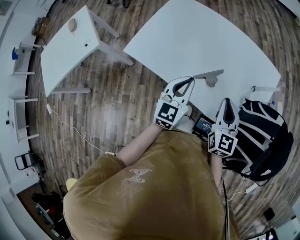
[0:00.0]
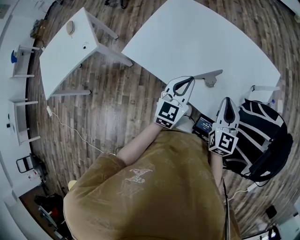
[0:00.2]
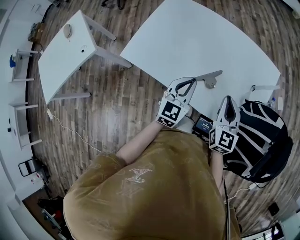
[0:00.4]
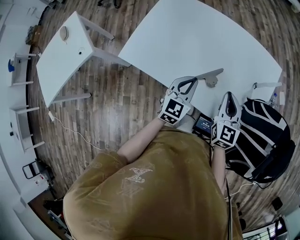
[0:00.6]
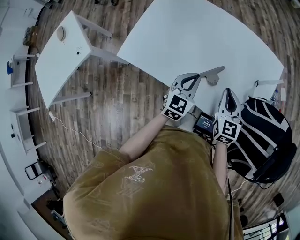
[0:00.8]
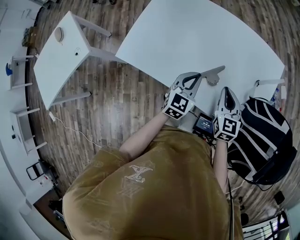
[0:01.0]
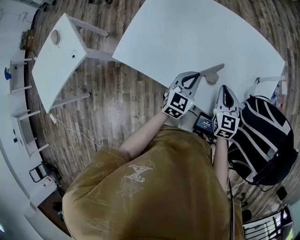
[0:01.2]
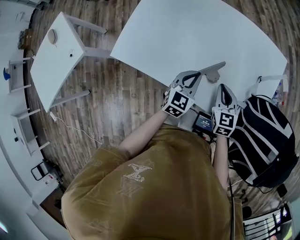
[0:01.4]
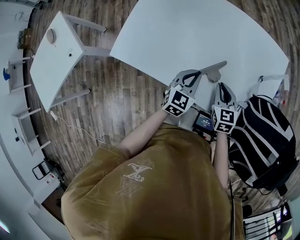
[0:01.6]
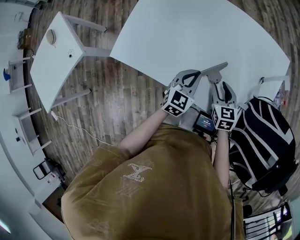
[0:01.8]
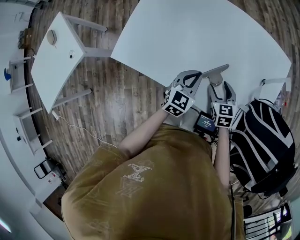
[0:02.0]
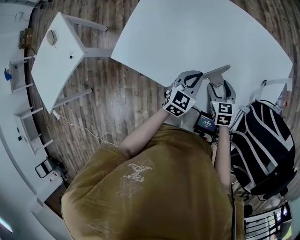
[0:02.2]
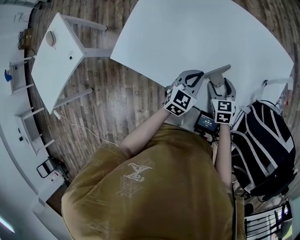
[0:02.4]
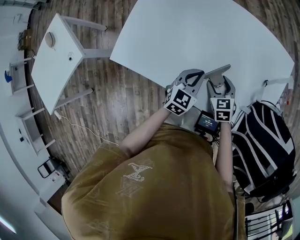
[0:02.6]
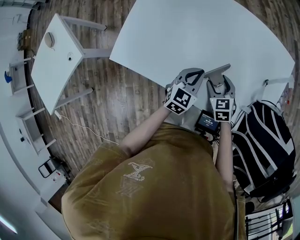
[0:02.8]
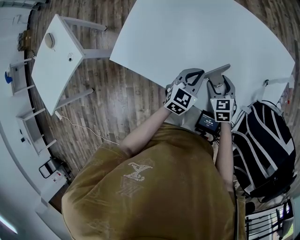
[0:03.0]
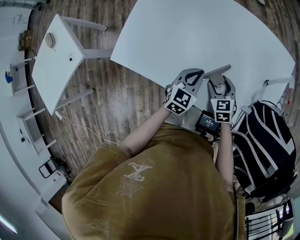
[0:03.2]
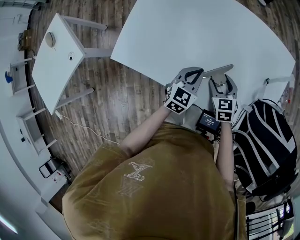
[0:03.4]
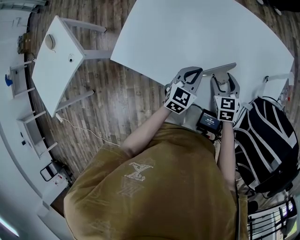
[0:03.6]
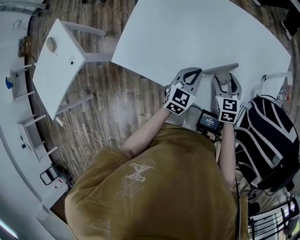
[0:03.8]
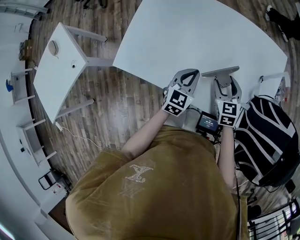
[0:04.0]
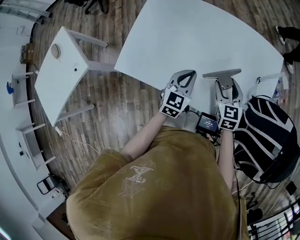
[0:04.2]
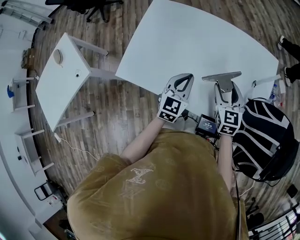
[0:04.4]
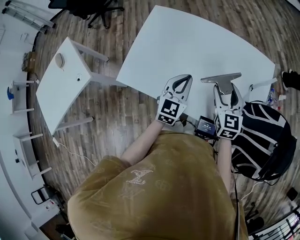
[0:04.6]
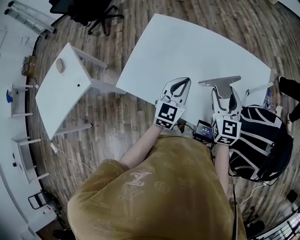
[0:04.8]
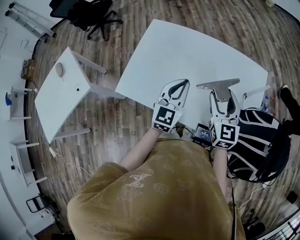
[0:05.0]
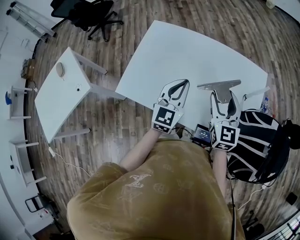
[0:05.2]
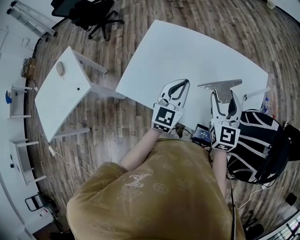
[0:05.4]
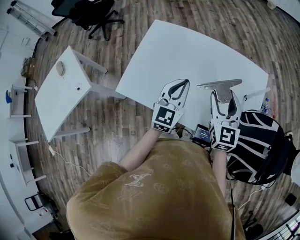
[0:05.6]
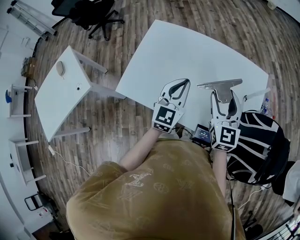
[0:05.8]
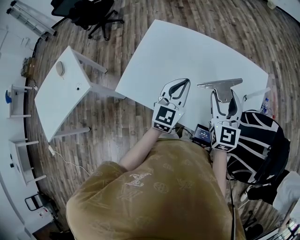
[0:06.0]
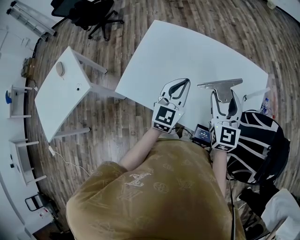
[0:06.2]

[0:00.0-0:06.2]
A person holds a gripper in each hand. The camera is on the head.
0:00.0 to 0:01.6: The right gripper goes about 15 cm downward, and turns by approximately 20 degrees; the left gripper shifts roughly 15 cm downward and forward.
0:01.6 to 0:03.2: The right gripper is displaced downward by approximately 5 cm, and opens up.
0:03.2 to 0:04.6: The right gripper travels upward by roughly 20 cm, and swivels roughly 30 degrees; the left gripper moves upward, approximately 15 cm.
0:04.6 to 0:06.2: The two grippers go about 5 cm upward.

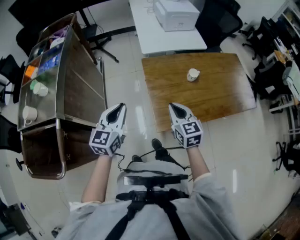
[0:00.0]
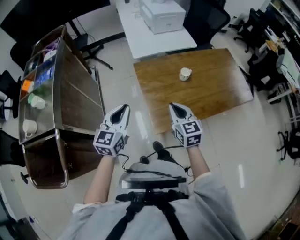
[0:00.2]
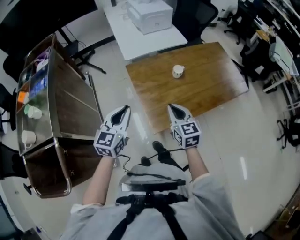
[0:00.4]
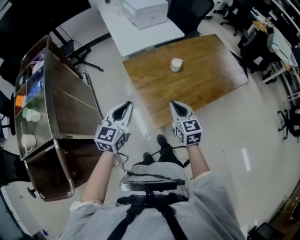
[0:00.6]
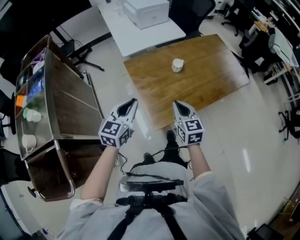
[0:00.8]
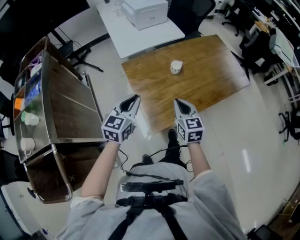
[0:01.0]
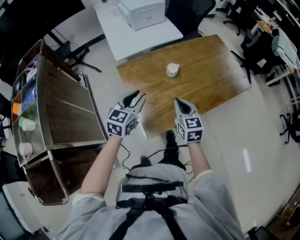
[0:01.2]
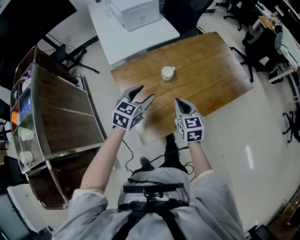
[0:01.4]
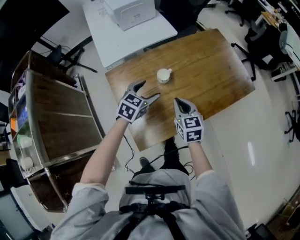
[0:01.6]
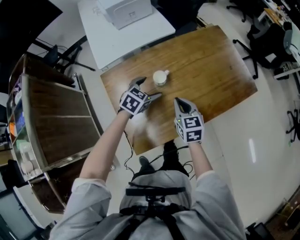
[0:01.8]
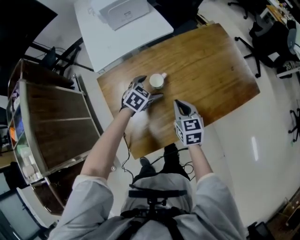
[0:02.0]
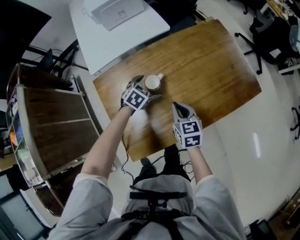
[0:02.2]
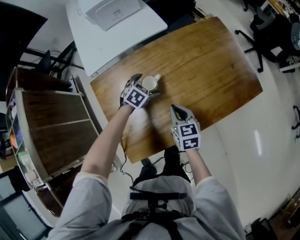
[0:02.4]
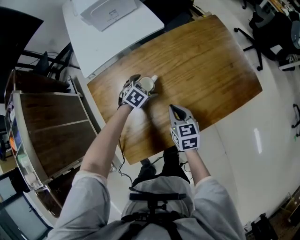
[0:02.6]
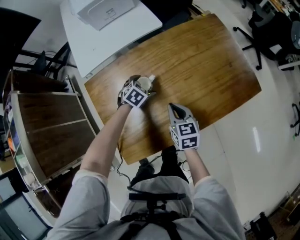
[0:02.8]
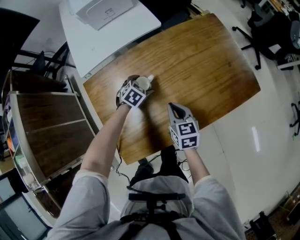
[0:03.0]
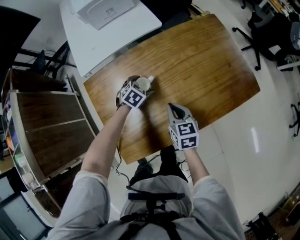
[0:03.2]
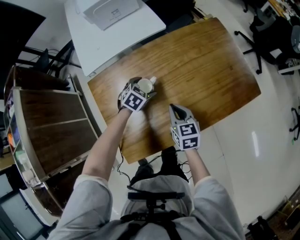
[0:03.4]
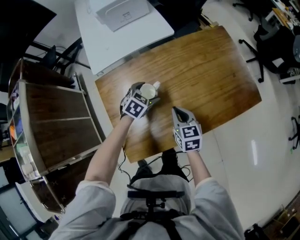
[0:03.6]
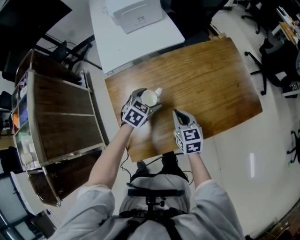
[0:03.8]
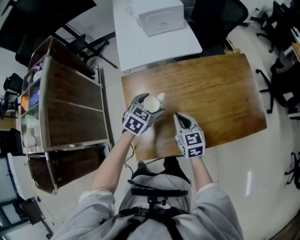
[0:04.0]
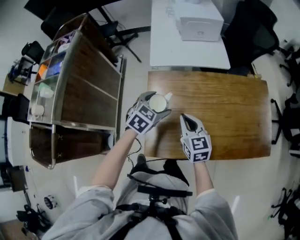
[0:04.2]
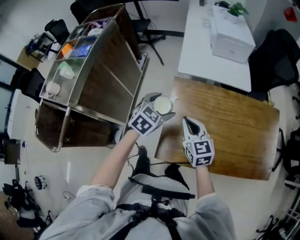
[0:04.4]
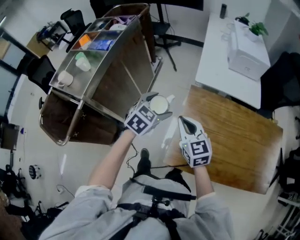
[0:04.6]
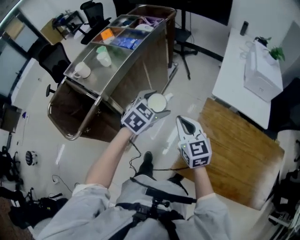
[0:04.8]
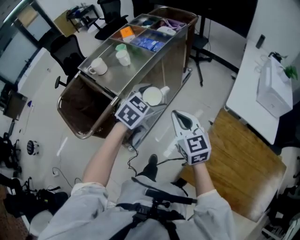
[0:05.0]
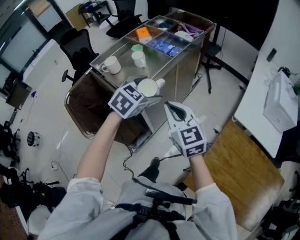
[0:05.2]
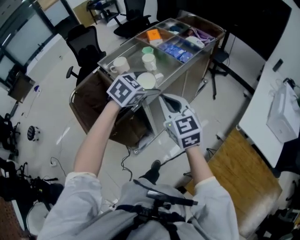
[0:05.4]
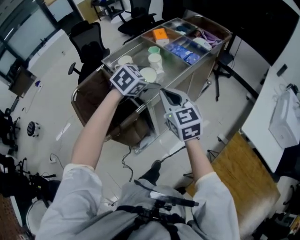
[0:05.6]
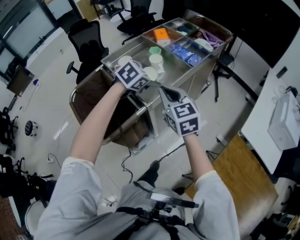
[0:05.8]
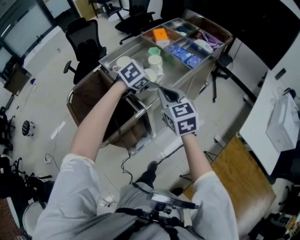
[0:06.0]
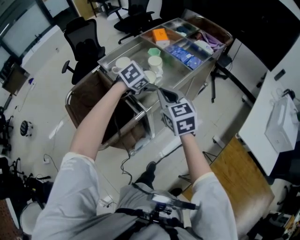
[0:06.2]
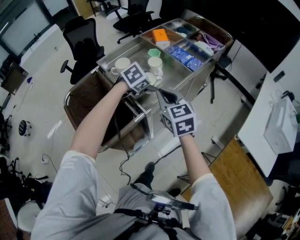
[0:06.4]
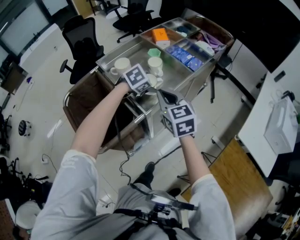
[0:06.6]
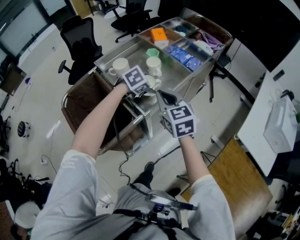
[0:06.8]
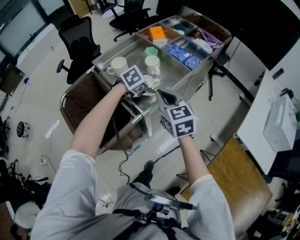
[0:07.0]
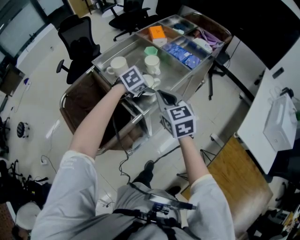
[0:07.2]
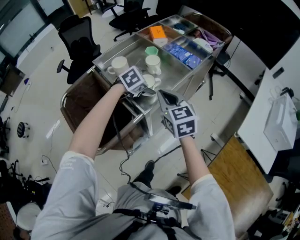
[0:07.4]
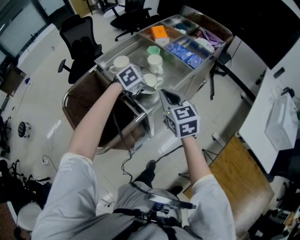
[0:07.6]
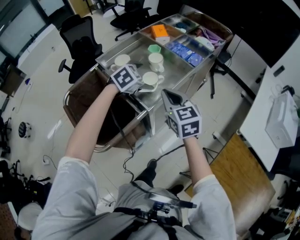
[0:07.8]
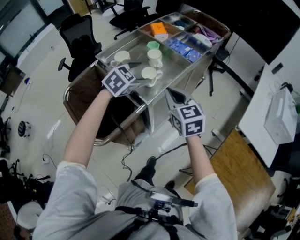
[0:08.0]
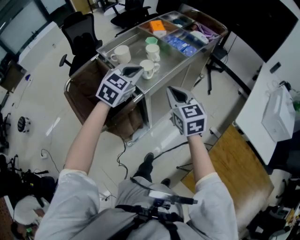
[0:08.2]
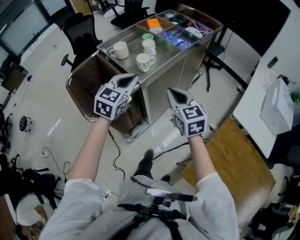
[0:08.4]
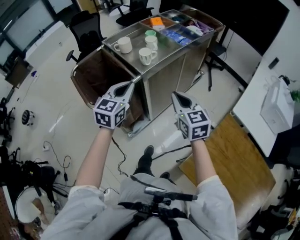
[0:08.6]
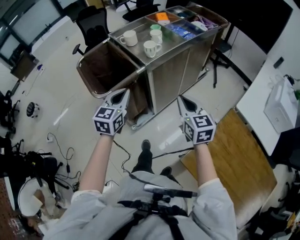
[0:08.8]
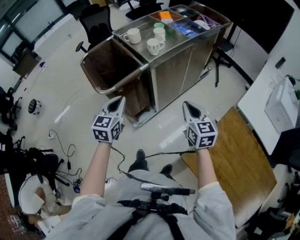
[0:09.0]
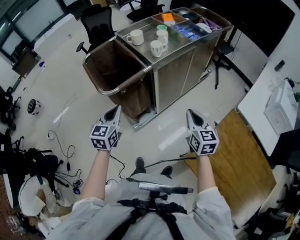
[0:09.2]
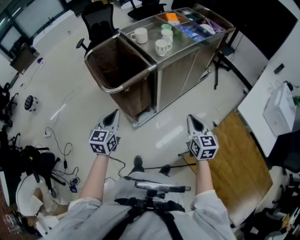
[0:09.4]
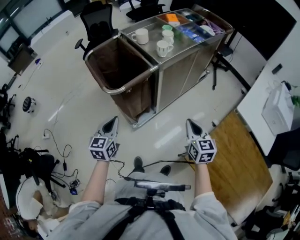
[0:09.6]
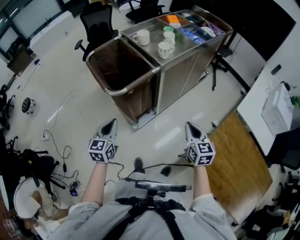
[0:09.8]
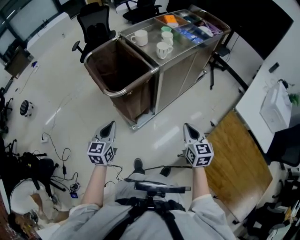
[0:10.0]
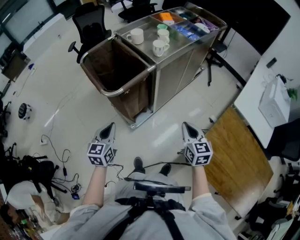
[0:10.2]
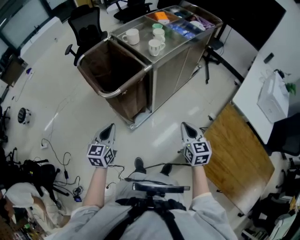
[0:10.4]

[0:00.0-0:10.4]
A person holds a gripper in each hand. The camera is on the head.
0:00.0 to 0:01.4: The left gripper is displaced to the right, forward and downward by about 30 cm, changes its angle by approximately 30 degrees, and opens its fingers; the right gripper travels to the right and forward by approximately 20 cm.
0:01.4 to 0:03.0: The right gripper travels forward, downward and to the right by roughly 20 cm; the left gripper is displaced downward and forward by about 35 cm, and angles its fingers downward, by approximately 30 degrees.
0:03.0 to 0:04.4: The right gripper ends up approximately 30 cm from where it was, and turns by about 40 degrees; the left gripper shifts by about 40 cm, and changes its angle by some 40 degrees.
0:04.4 to 0:06.0: The pair of grippers is taken some 60 cm. The left gripper swivels roughly 30 degrees. The right gripper changes its angle by approximately 40 degrees.
0:06.0 to 0:07.4: The left gripper travels downward by some 5 cm.
0:07.4 to 0:09.0: The right gripper goes approximately 30 cm backward and to the right. Meanwhile the left gripper heads backward, covering approximately 40 cm, tips its fingers upward by roughly 30 degrees, and closes its fingers.
0:09.0 to 0:10.4: The left gripper moves to the left, backward and downward, approximately 15 cm, while the right gripper travels backward, downward and to the left by roughly 10 cm.

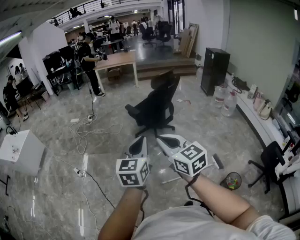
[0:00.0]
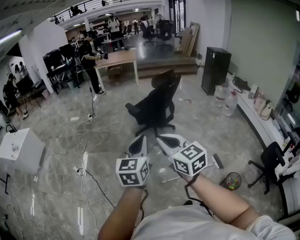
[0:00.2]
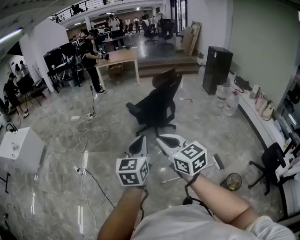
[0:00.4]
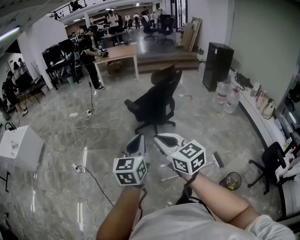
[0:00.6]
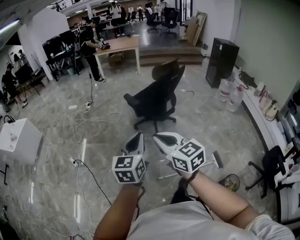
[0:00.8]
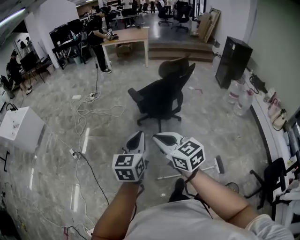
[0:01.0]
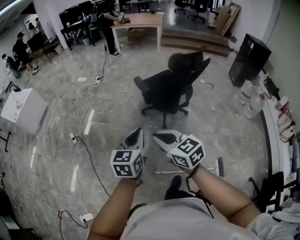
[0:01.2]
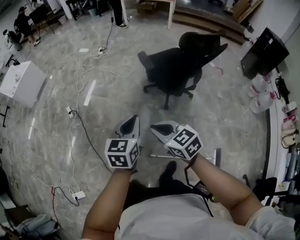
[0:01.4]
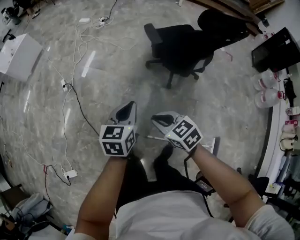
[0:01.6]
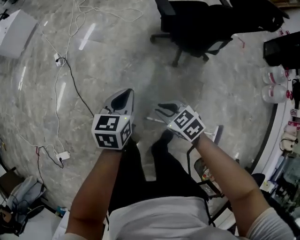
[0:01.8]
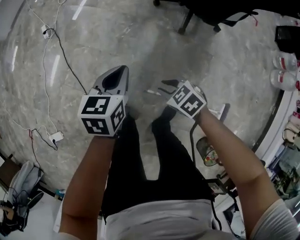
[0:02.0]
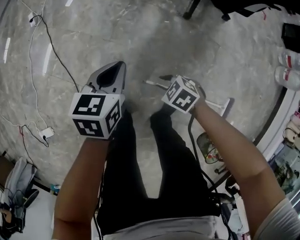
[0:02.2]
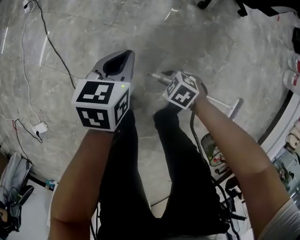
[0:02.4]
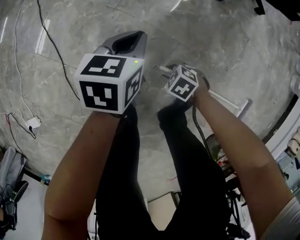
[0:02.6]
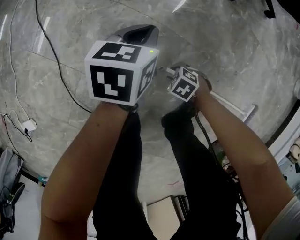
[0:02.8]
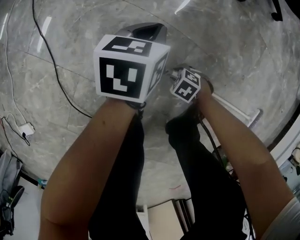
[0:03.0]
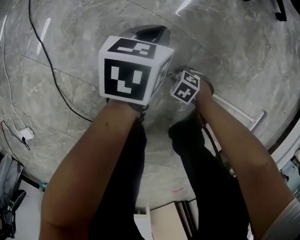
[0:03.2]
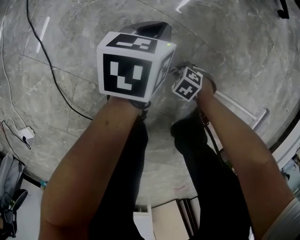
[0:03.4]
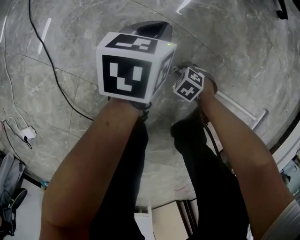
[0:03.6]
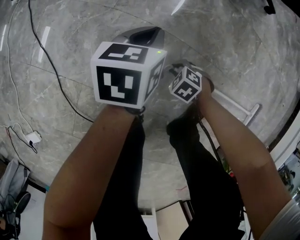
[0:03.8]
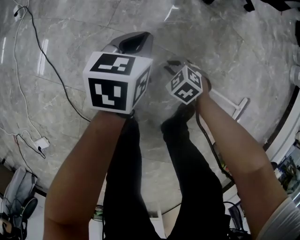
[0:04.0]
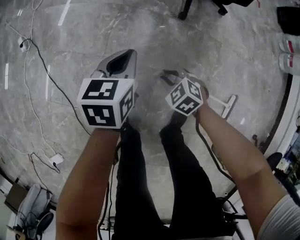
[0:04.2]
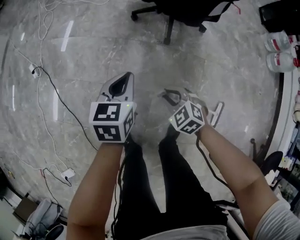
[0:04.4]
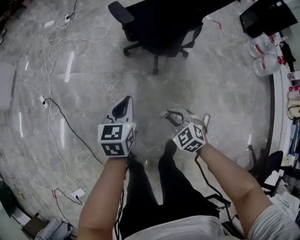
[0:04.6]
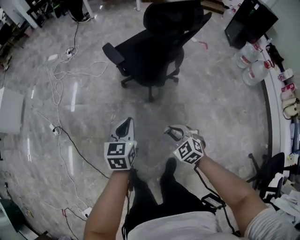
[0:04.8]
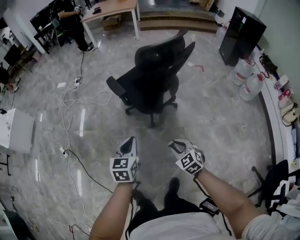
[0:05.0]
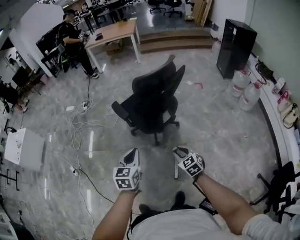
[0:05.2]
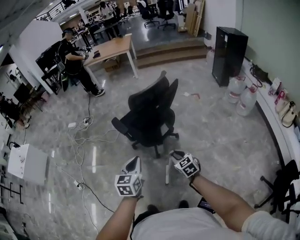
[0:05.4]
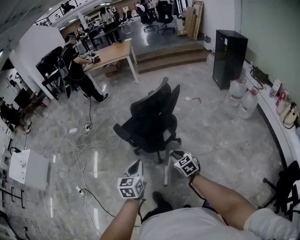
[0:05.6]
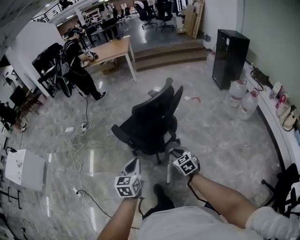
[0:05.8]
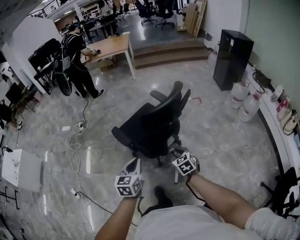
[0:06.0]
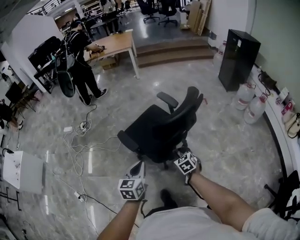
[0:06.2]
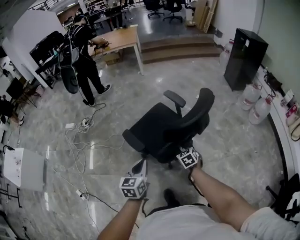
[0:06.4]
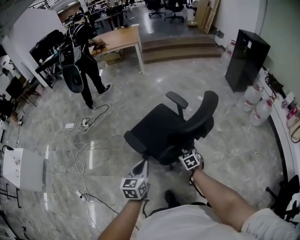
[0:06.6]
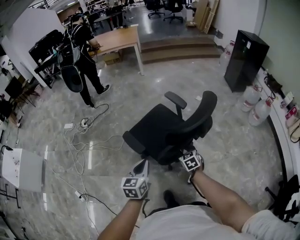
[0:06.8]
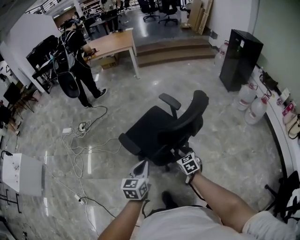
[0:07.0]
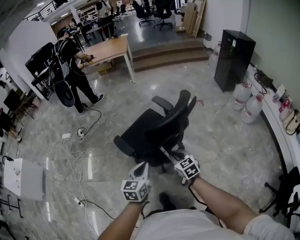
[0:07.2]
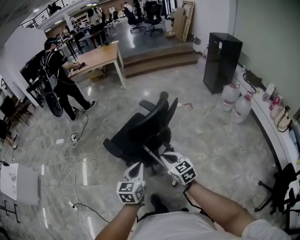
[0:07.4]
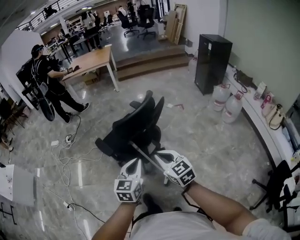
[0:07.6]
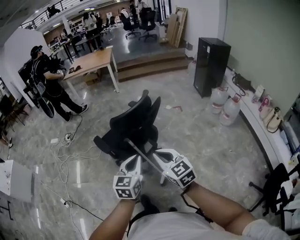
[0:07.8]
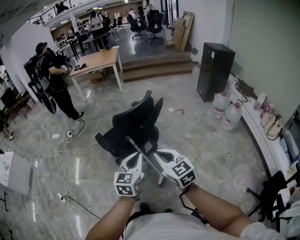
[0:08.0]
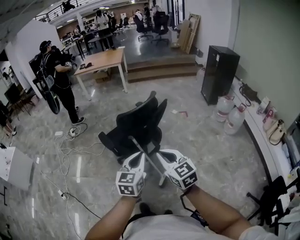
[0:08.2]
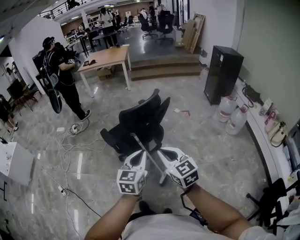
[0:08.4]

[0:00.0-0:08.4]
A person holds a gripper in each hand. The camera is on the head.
0:00.0 to 0:01.4: The left gripper changes place by about 40 cm, and rotates about 30 degrees; the right gripper changes place by about 40 cm, and swivels approximately 40 degrees.
0:01.4 to 0:02.8: Both grippers travel together downward, about 90 cm. The left gripper swivels roughly 30 degrees, while the right gripper tilts its fingers some 40 degrees downward, and opens up.
0:02.8 to 0:04.2: The grippers both shift upward by roughly 25 cm. The right gripper swivels approximately 30 degrees.
0:04.2 to 0:05.6: Both grippers travel together upward and to the right, some 70 cm. The left gripper swivels approximately 20 degrees. Meanwhile the right gripper turns by approximately 50 degrees.
0:05.6 to 0:07.0: The right gripper goes some 25 cm forward. Meanwhile the left gripper moves forward and to the left, roughly 30 cm.
0:07.0 to 0:08.4: The left gripper heads to the right, backward and upward, covering approximately 35 cm. The right gripper heads backward, upward and to the right, covering about 40 cm, rotates approximately 30 degrees, and closes its fingers.
